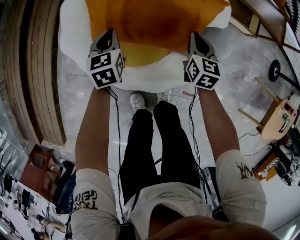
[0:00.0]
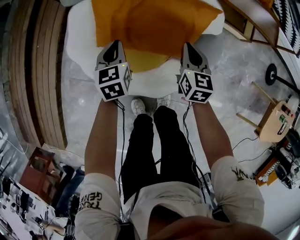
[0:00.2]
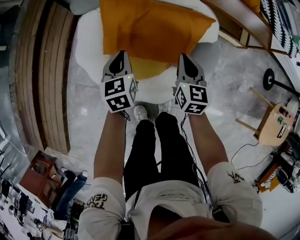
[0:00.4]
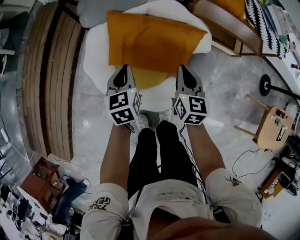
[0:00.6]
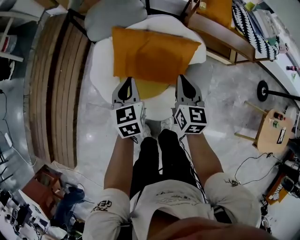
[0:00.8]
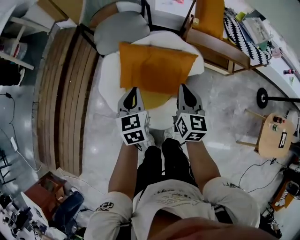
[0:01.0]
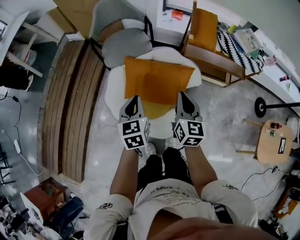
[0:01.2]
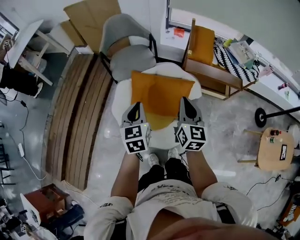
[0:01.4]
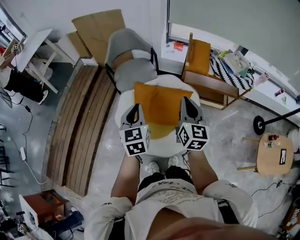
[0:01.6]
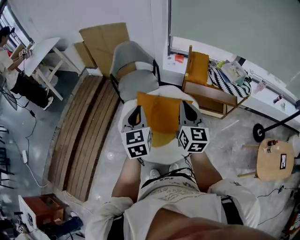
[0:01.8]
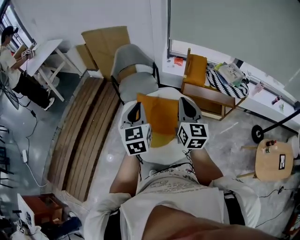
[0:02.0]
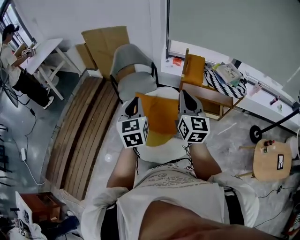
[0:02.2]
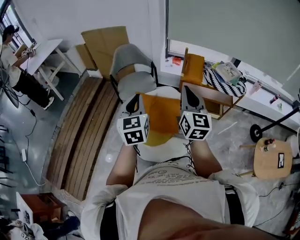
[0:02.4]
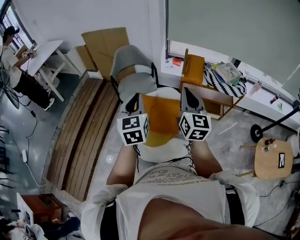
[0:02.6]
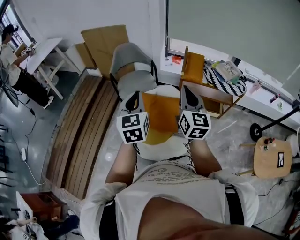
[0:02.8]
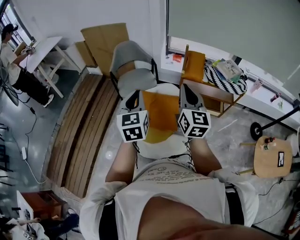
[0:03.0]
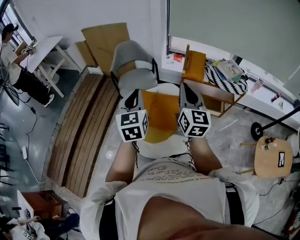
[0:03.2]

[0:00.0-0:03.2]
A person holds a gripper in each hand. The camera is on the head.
0:00.0 to 0:01.6: The grippers both shift upward by some 50 cm. The right gripper tilts its fingers approximately 30 degrees upward. Meanwhile the left gripper swivels about 20 degrees.
0:01.6 to 0:03.2: Both grippers travel together upward, about 10 cm.

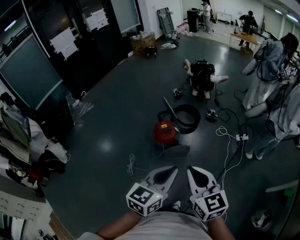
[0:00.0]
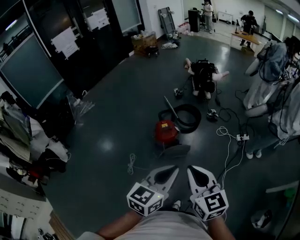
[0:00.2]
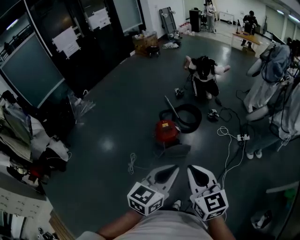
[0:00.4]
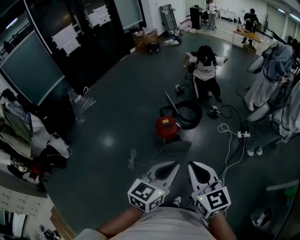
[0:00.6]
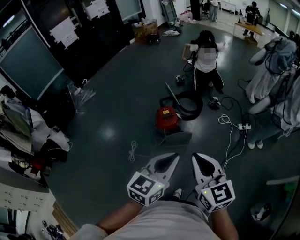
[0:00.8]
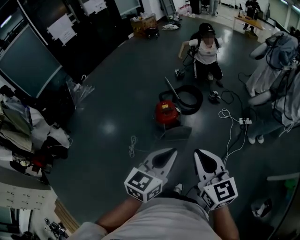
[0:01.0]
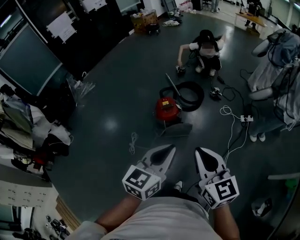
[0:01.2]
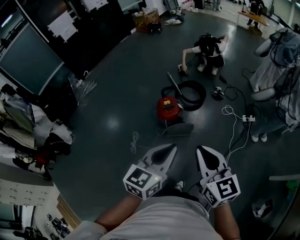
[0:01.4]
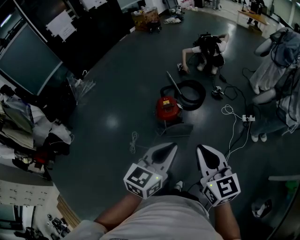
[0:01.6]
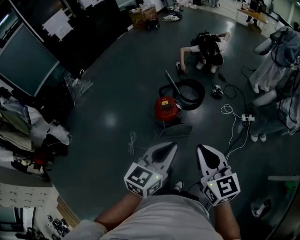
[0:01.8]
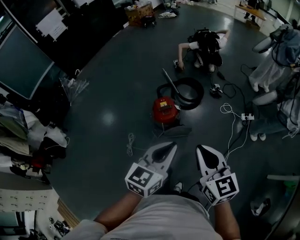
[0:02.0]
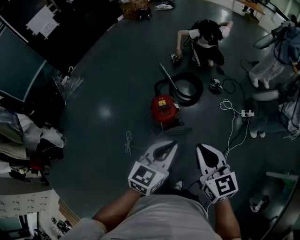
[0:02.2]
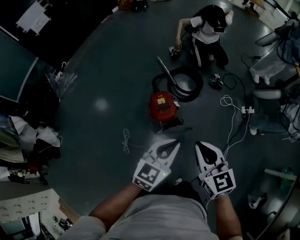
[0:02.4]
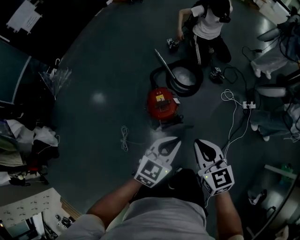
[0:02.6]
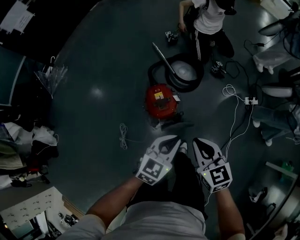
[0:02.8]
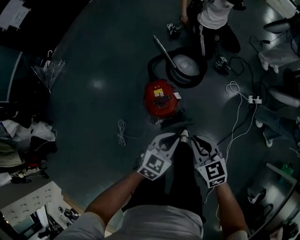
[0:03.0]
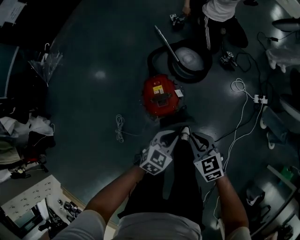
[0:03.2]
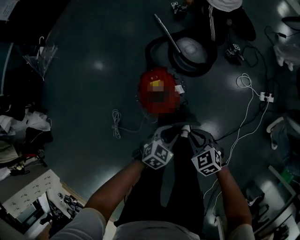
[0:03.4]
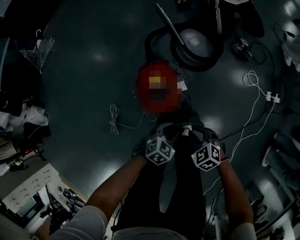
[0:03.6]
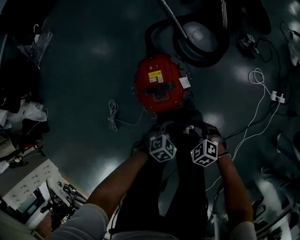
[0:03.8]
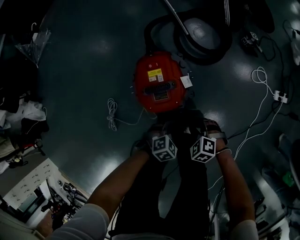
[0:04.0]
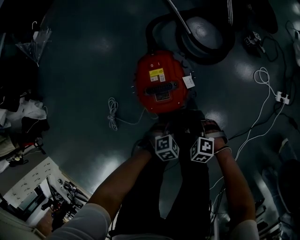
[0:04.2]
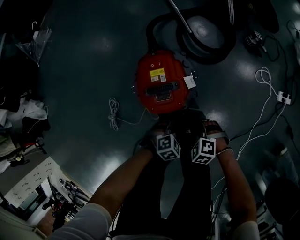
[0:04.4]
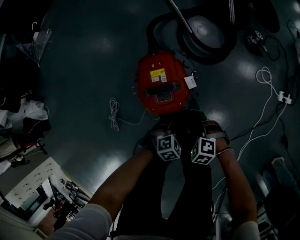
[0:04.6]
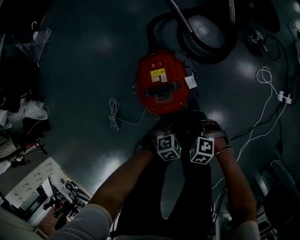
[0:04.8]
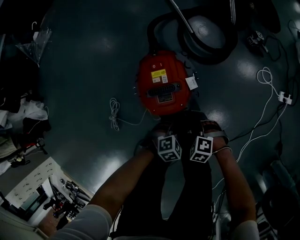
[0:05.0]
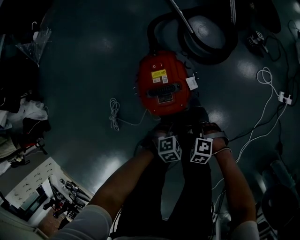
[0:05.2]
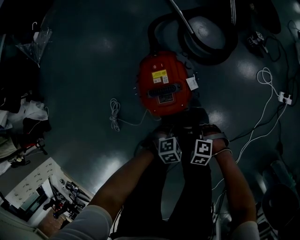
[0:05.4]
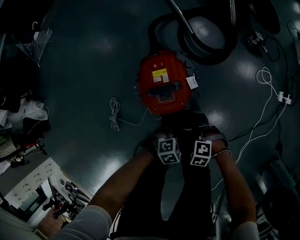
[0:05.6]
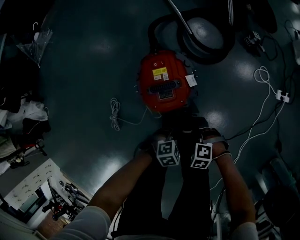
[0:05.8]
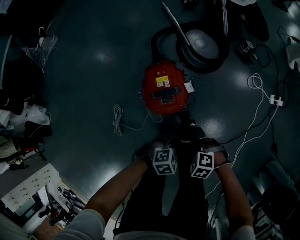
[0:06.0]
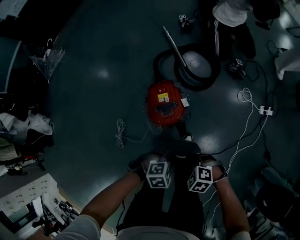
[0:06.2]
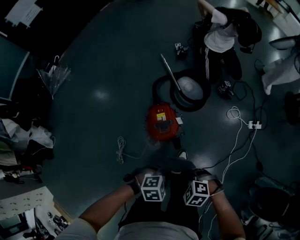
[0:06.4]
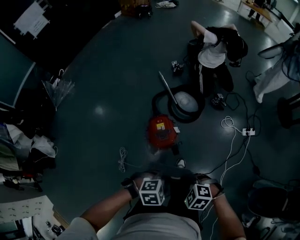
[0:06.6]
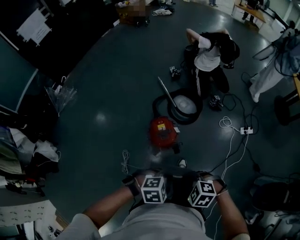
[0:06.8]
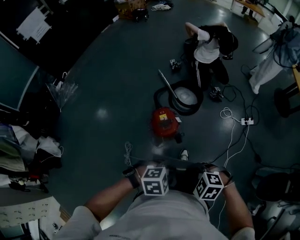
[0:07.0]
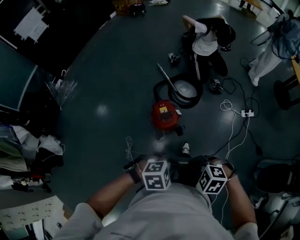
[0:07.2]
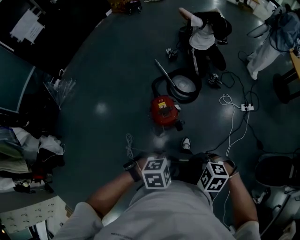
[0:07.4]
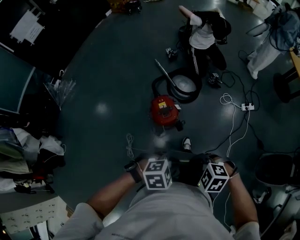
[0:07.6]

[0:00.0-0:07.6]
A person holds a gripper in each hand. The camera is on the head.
0:00.0 to 0:01.6: The right gripper travels to the right by roughly 5 cm.
0:01.6 to 0:03.0: The grippers both shift downward and forward by roughly 40 cm. The right gripper swivels some 30 degrees; the left gripper changes its angle by approximately 20 degrees.
0:03.0 to 0:04.6: Both grippers travel together downward, about 40 cm. The right gripper tips its fingers downward by some 30 degrees, and opens, while the left gripper points its fingers about 30 degrees further downward.
0:04.6 to 0:06.0: The two grippers go roughly 10 cm upward. The right gripper closes up.
0:06.0 to 0:07.6: Both grippers move upward, approximately 40 cm.

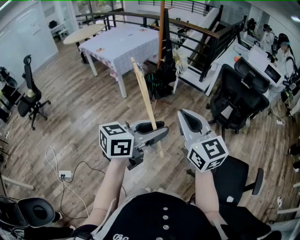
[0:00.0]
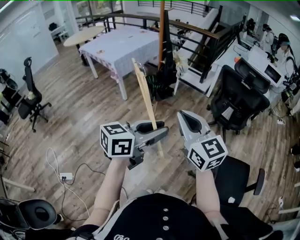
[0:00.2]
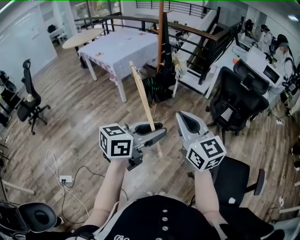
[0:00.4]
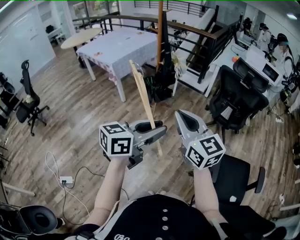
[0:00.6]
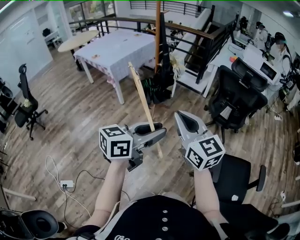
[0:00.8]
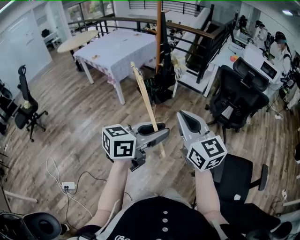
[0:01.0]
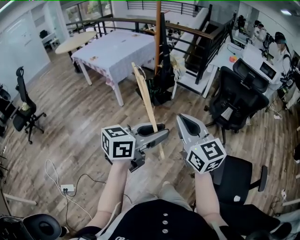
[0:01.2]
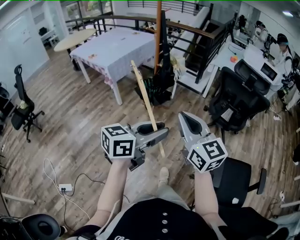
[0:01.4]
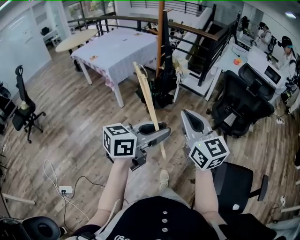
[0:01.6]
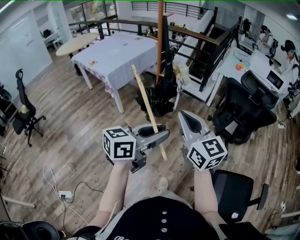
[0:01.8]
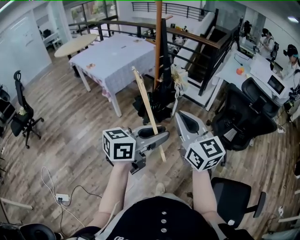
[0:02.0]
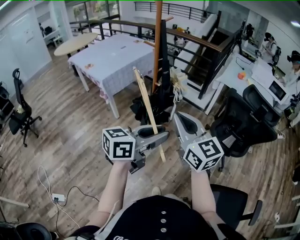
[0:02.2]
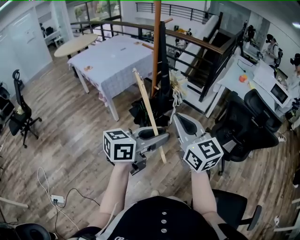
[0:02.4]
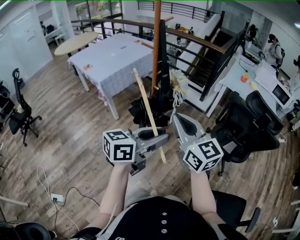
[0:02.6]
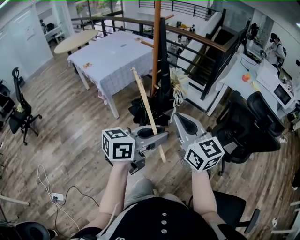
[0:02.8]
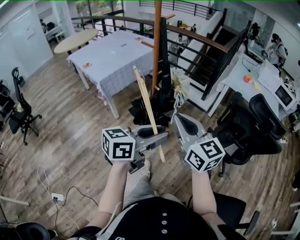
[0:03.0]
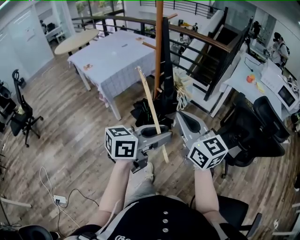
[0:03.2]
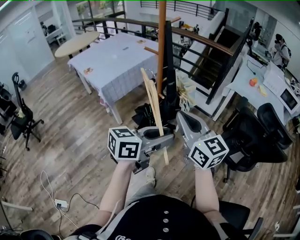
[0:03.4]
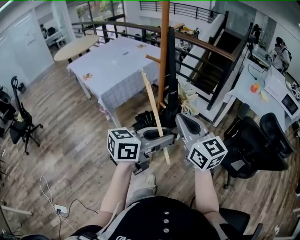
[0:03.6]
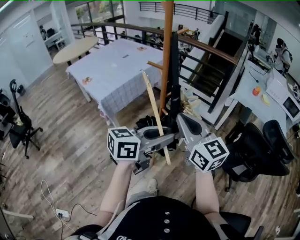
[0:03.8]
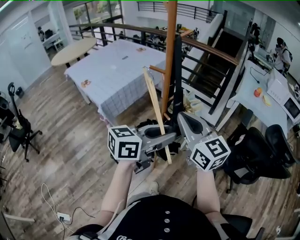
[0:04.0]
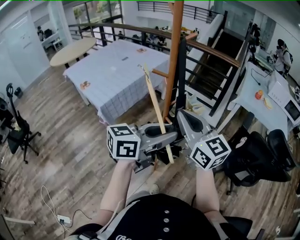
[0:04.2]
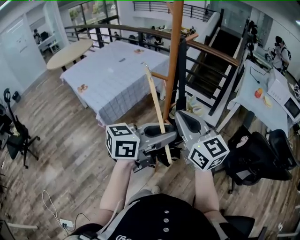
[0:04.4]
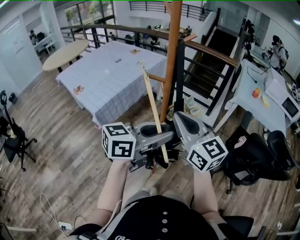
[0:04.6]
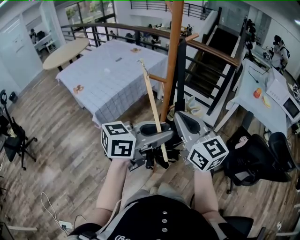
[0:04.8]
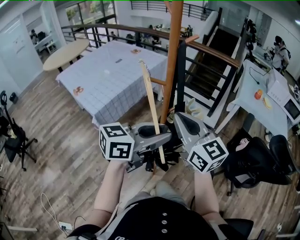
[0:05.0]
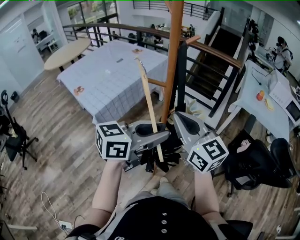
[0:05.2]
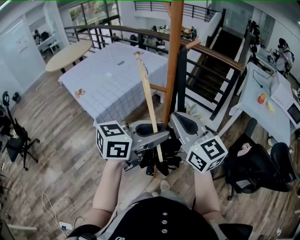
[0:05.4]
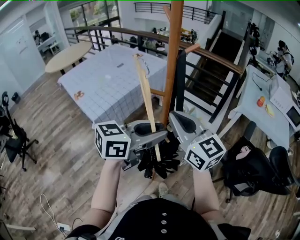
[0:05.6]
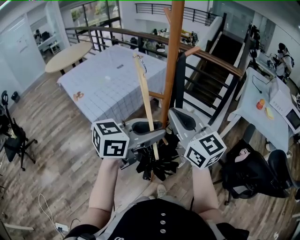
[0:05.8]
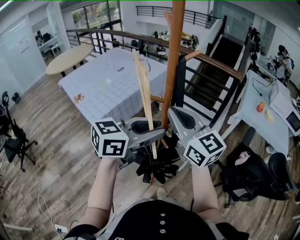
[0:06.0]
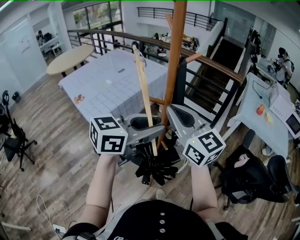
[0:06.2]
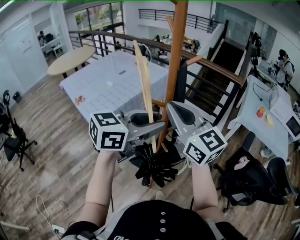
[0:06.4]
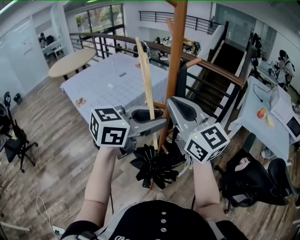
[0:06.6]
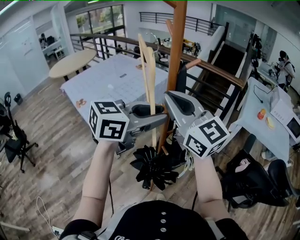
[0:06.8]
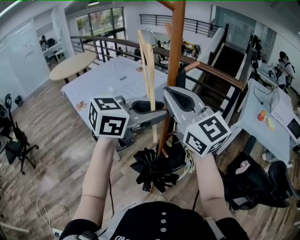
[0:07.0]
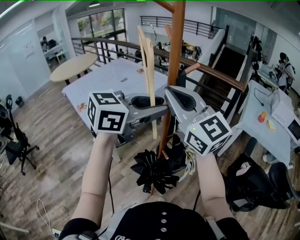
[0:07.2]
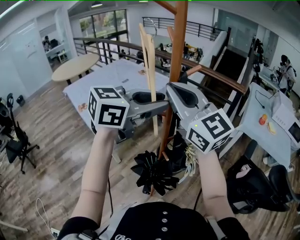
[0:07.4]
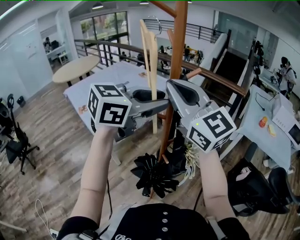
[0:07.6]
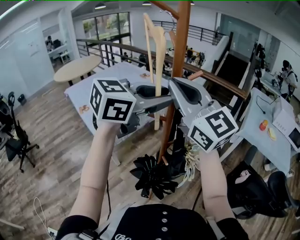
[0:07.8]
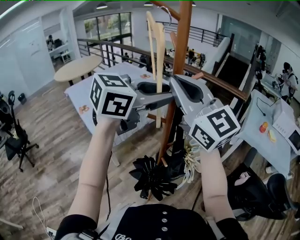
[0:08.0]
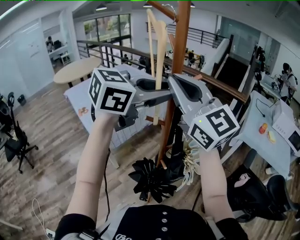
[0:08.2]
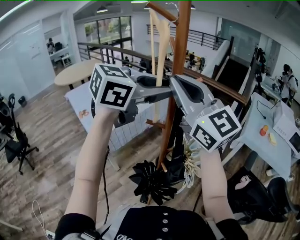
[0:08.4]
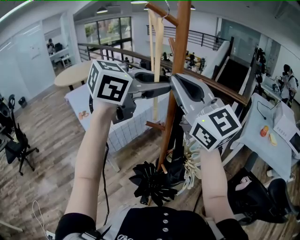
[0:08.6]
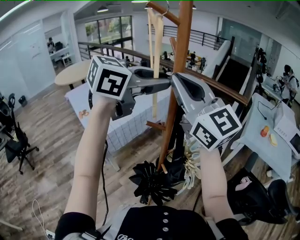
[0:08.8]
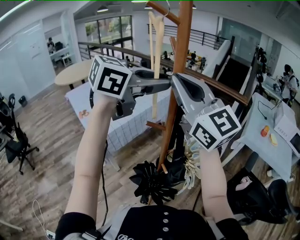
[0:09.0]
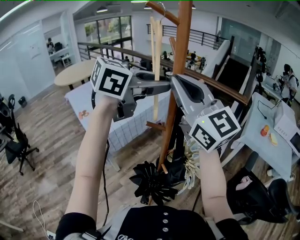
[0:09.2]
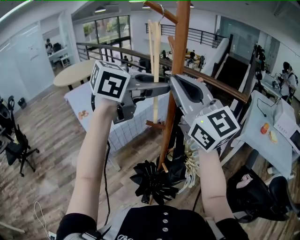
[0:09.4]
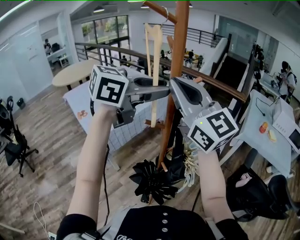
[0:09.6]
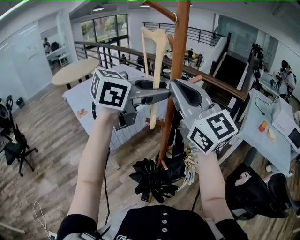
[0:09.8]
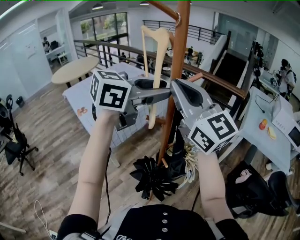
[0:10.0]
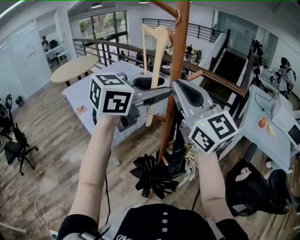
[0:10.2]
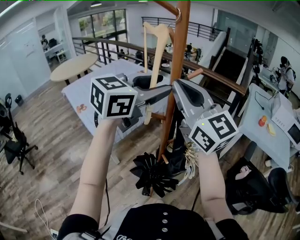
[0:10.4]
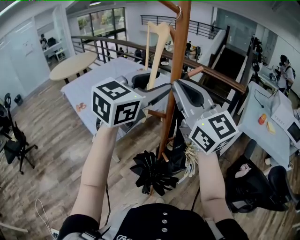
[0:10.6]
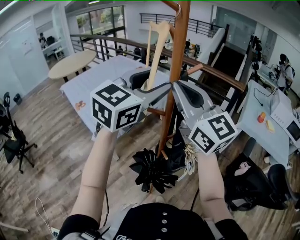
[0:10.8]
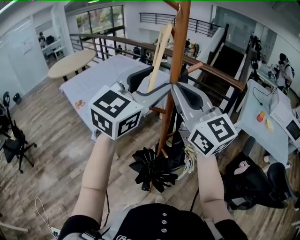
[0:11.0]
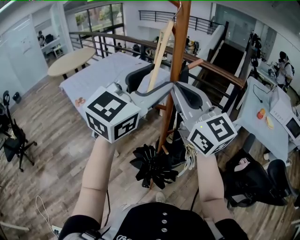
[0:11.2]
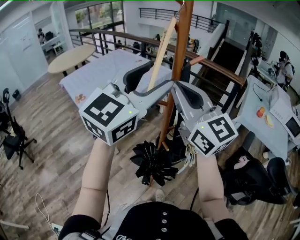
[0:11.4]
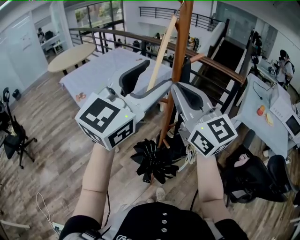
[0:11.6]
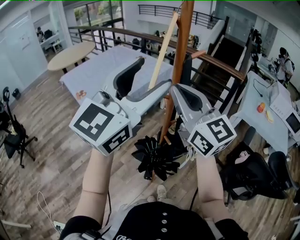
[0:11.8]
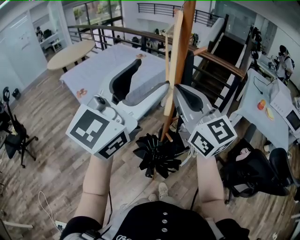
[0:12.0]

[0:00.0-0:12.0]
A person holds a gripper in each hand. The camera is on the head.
0:00.0 to 0:01.6: The left gripper travels forward and to the left by some 10 cm. The right gripper is displaced forward by roughly 10 cm.
0:01.6 to 0:03.0: Both grippers move forward, roughly 25 cm.
0:03.0 to 0:04.4: Both grippers travel together forward and to the left, approximately 25 cm.
0:04.4 to 0:06.0: Both grippers move forward, approximately 10 cm.
0:06.0 to 0:07.6: The left gripper travels upward and forward by about 15 cm, while the right gripper shifts about 15 cm upward, and changes its angle by approximately 20 degrees.
0:07.6 to 0:09.0: The left gripper shifts approximately 10 cm forward and upward.
0:09.0 to 0:10.4: The grippers stay close to where they were, moving slightly.
0:10.4 to 0:12.0: The left gripper goes about 15 cm backward and to the left, swivels approximately 30 degrees, and opens up. Meanwhile the right gripper moves backward and downward, approximately 10 cm.

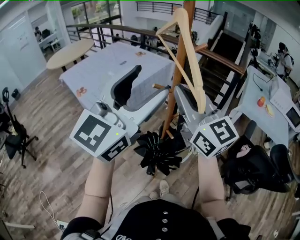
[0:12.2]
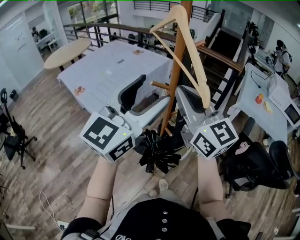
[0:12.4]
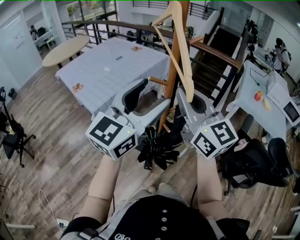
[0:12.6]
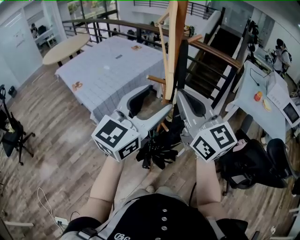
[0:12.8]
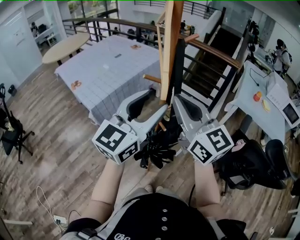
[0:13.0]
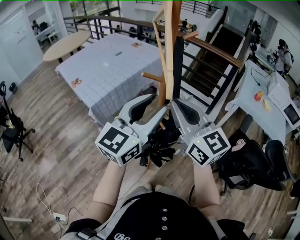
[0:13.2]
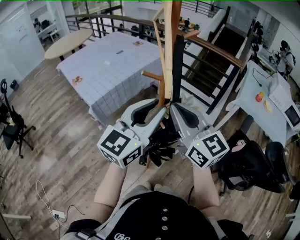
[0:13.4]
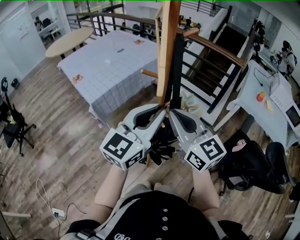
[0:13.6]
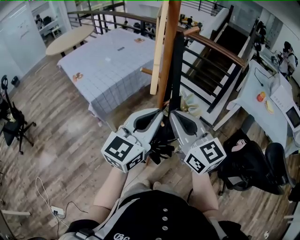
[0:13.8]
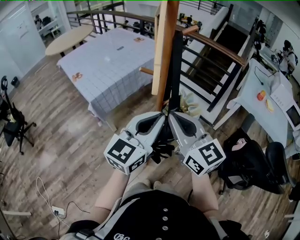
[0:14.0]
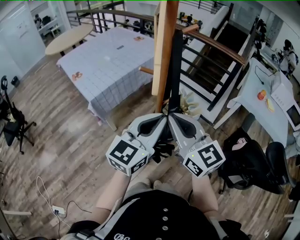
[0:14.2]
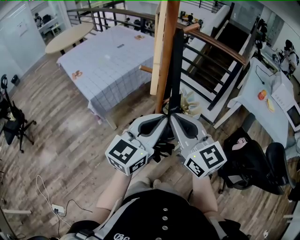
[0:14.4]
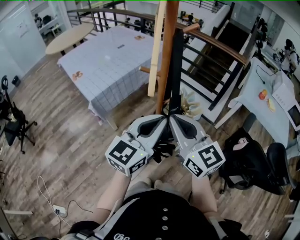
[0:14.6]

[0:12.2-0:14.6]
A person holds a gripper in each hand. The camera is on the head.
0:12.2 to 0:13.4: The right gripper heads downward, covering roughly 10 cm; the left gripper goes roughly 15 cm downward and to the right, and closes.
0:13.4 to 0:14.6: The right gripper shifts by approximately 5 cm. The left gripper shifts about 5 cm downward.
